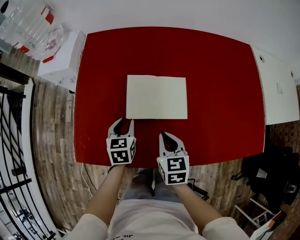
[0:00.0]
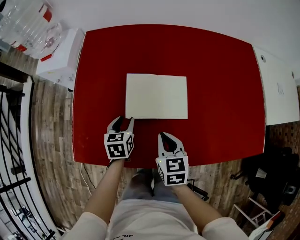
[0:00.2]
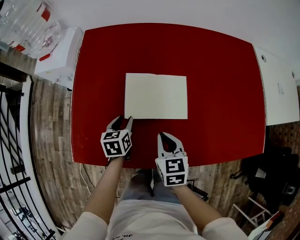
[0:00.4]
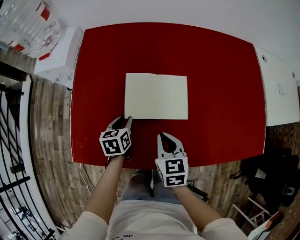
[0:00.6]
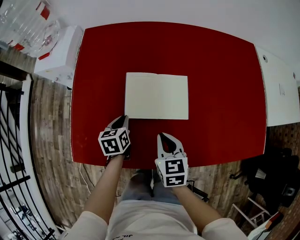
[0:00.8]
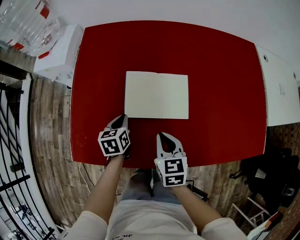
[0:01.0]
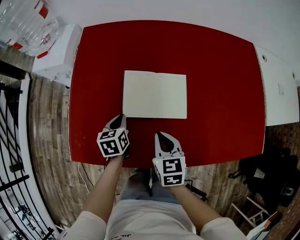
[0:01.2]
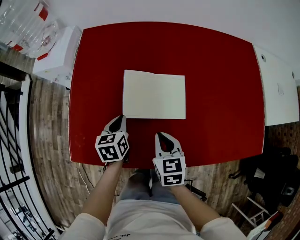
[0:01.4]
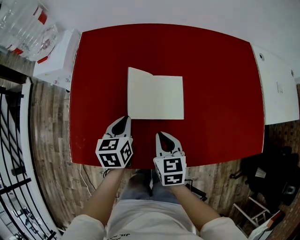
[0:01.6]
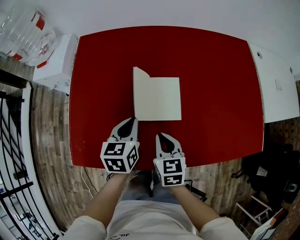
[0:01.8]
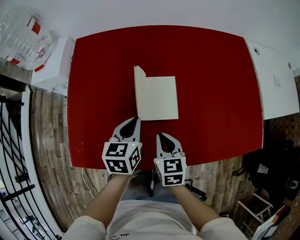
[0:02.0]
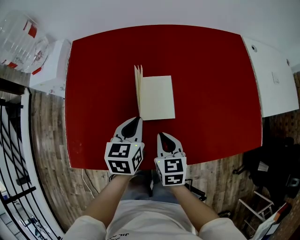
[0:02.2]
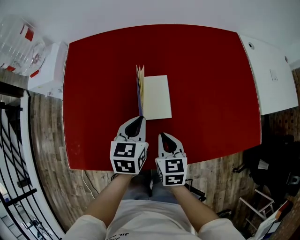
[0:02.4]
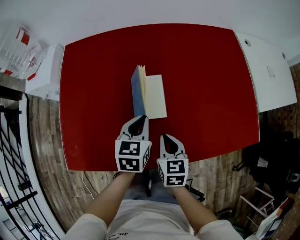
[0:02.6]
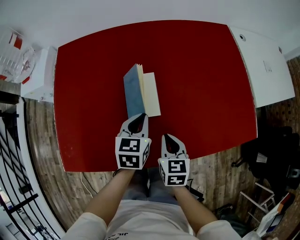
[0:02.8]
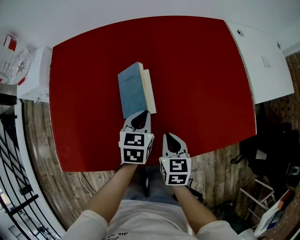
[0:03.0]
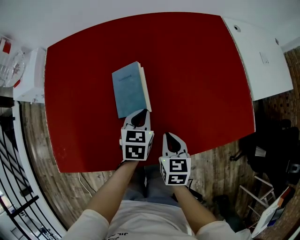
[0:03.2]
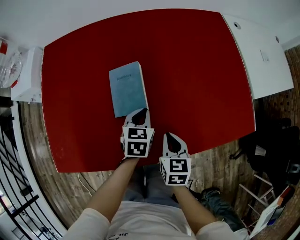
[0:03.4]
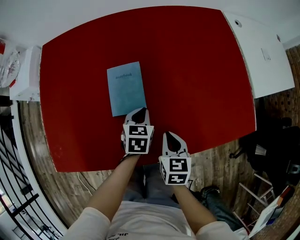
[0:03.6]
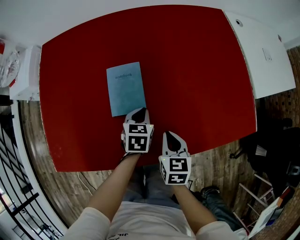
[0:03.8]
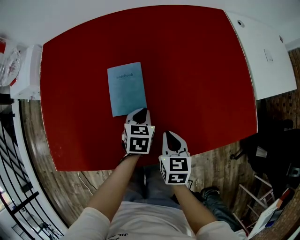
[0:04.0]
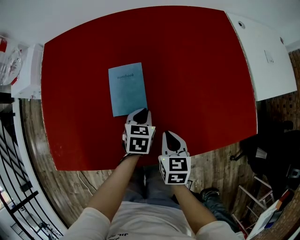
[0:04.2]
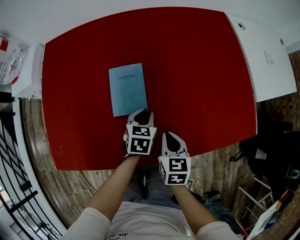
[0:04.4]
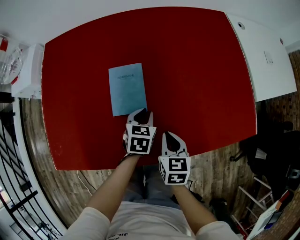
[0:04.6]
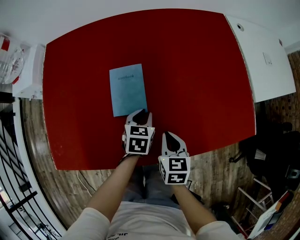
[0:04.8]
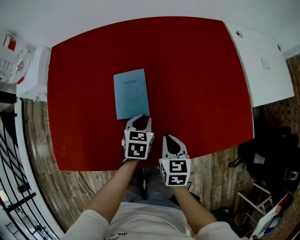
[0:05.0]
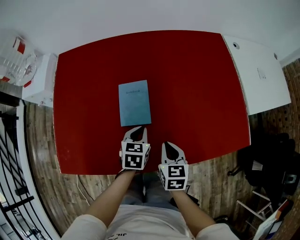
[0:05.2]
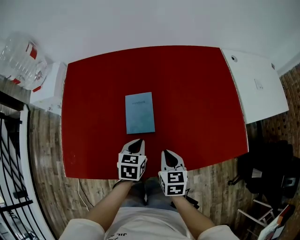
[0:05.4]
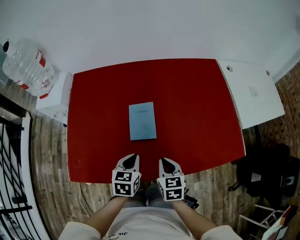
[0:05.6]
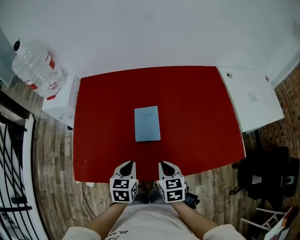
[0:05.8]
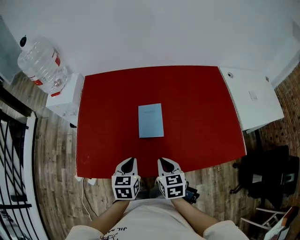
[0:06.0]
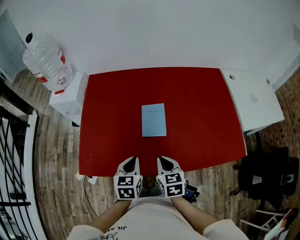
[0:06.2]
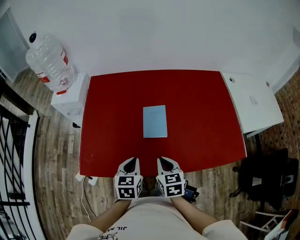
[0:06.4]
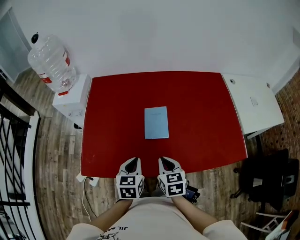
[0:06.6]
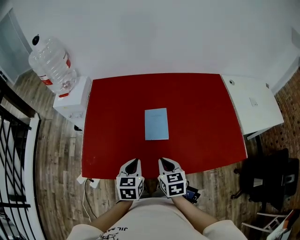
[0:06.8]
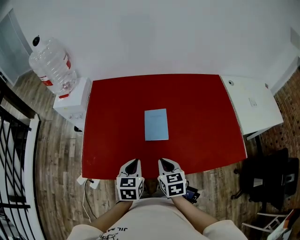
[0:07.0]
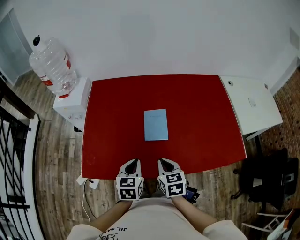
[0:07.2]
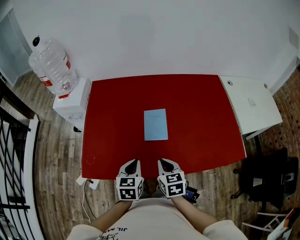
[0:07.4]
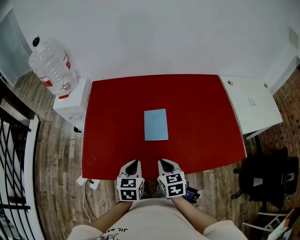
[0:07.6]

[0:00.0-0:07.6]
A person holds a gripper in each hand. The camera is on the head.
0:00.0 to 0:01.6: The left gripper closes its fingers.
0:01.6 to 0:03.0: Both grippers move to the right, roughly 20 cm. The left gripper rotates some 20 degrees.
0:03.0 to 0:04.6: The left gripper shifts roughly 10 cm downward.
0:04.6 to 0:06.0: The left gripper shifts roughly 30 cm upward, backward and to the left. Meanwhile the right gripper goes about 20 cm upward, to the left and backward.
0:06.0 to 0:07.6: The grippers move only a little.

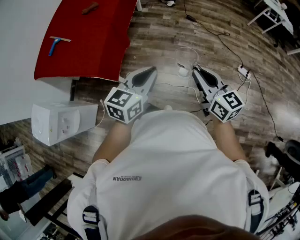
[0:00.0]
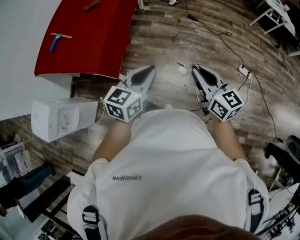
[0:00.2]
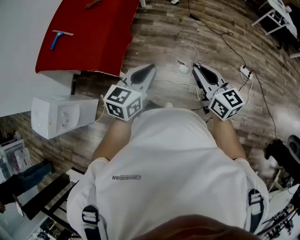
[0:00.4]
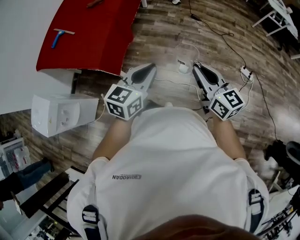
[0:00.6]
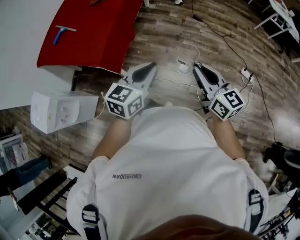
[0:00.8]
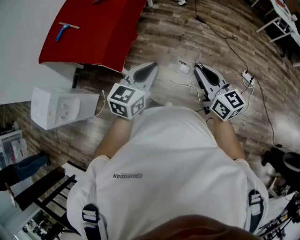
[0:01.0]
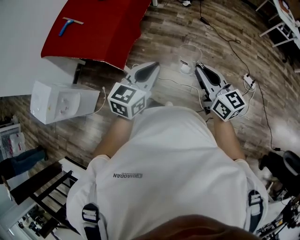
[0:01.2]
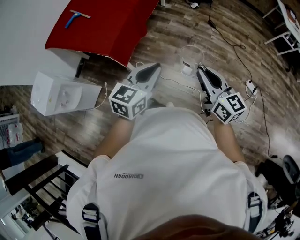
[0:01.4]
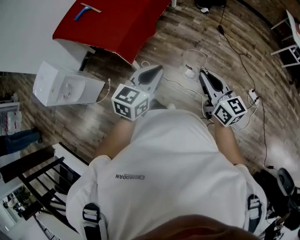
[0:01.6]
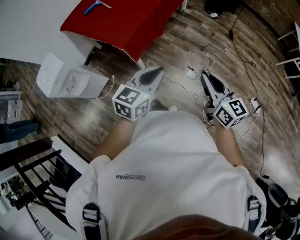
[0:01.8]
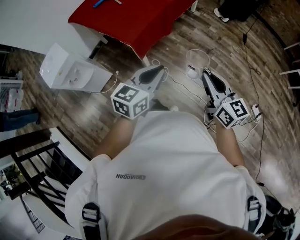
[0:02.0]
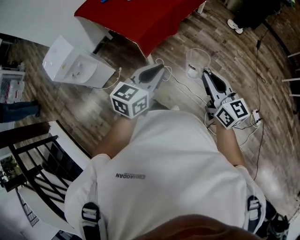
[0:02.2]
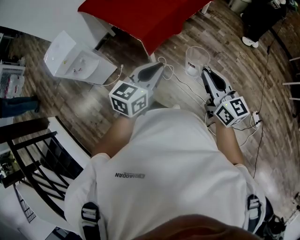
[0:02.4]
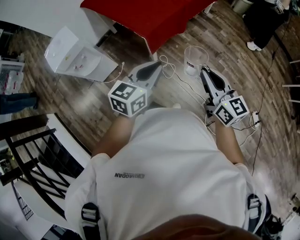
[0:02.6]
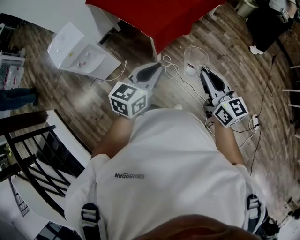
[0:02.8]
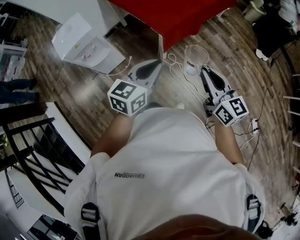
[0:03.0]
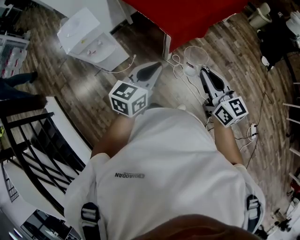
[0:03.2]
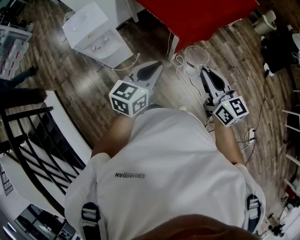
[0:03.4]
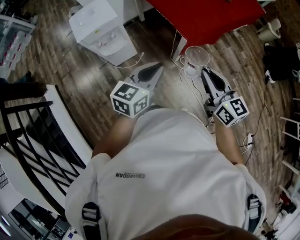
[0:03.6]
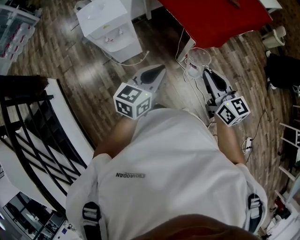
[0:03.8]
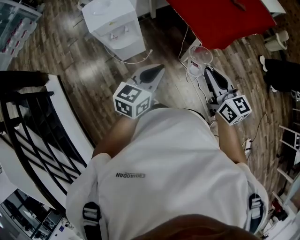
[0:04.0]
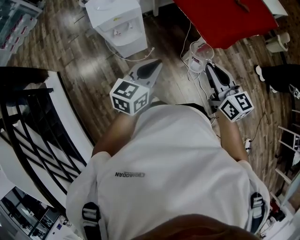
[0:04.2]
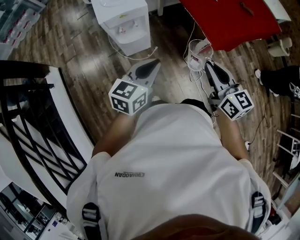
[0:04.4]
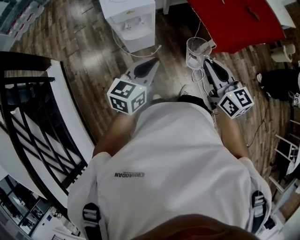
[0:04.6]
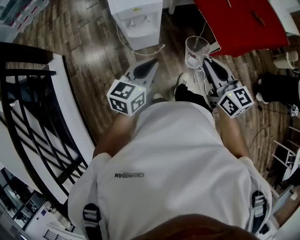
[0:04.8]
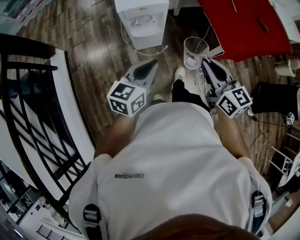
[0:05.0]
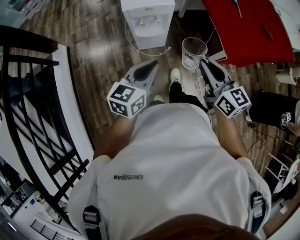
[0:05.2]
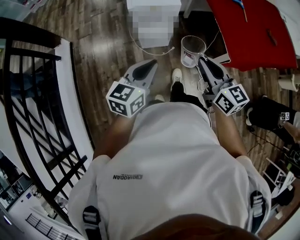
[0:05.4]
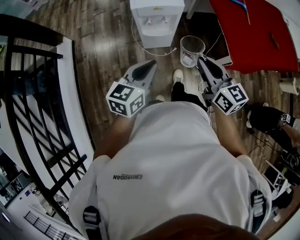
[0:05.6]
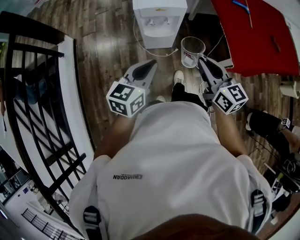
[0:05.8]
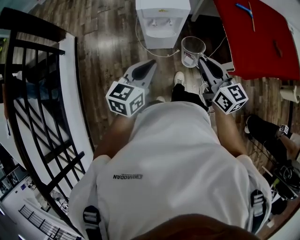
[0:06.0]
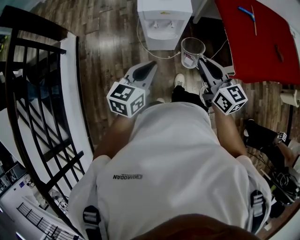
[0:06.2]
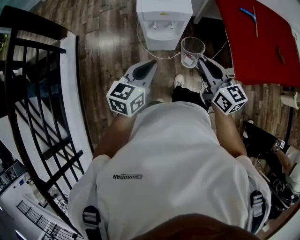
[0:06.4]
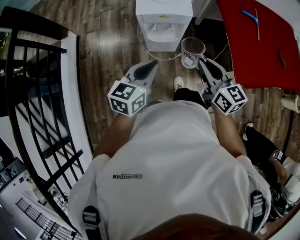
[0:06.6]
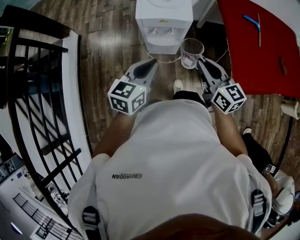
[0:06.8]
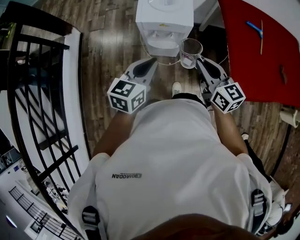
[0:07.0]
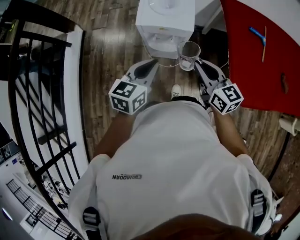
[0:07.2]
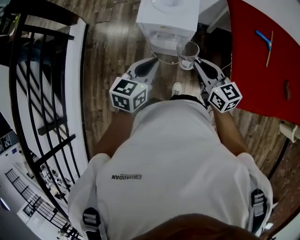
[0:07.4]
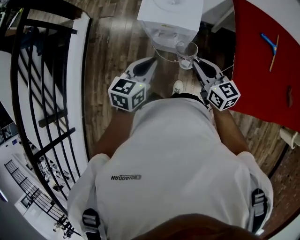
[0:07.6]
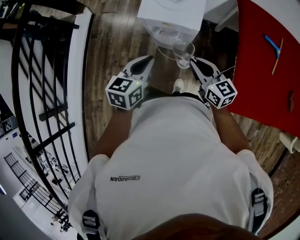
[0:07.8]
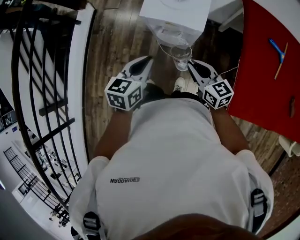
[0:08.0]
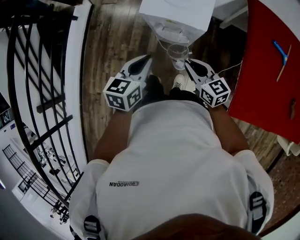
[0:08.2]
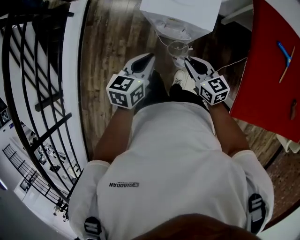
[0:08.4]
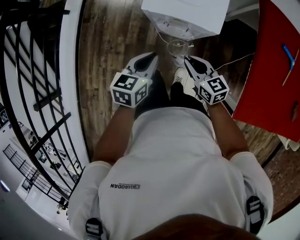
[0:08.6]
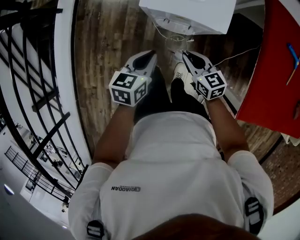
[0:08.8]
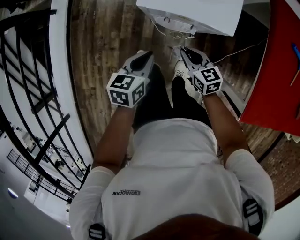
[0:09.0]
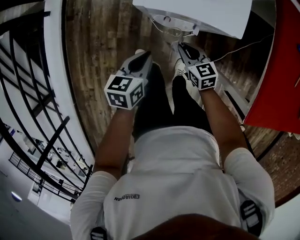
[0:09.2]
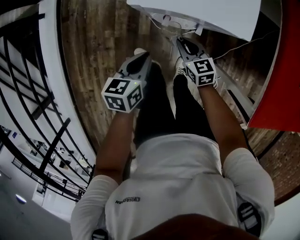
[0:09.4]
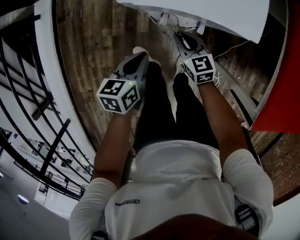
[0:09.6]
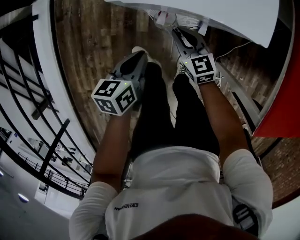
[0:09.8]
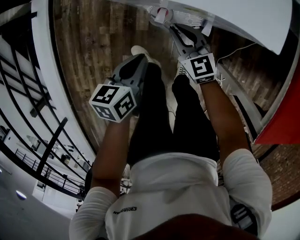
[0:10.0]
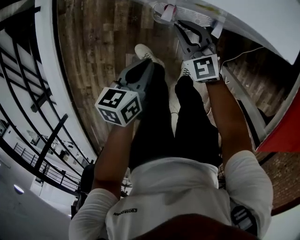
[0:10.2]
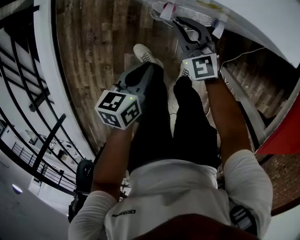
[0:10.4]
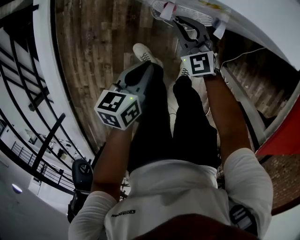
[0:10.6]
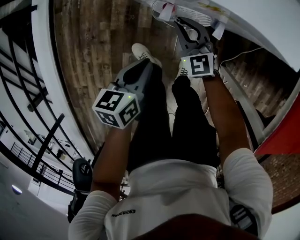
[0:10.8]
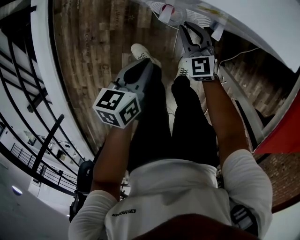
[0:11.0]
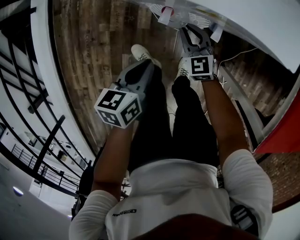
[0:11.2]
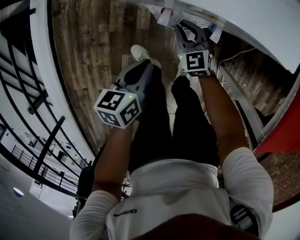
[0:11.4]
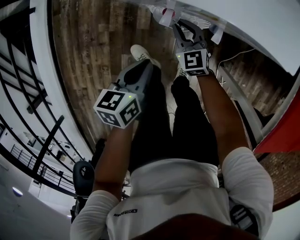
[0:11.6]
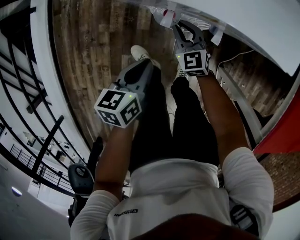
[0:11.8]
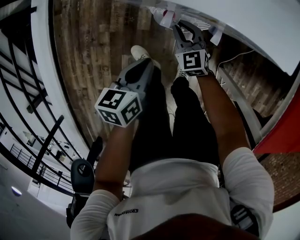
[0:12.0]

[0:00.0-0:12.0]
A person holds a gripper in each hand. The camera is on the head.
0:00.0 to 0:01.6: The left gripper moves about 5 cm.
0:01.6 to 0:03.0: The two grippers go approximately 20 cm to the left. The left gripper turns by about 20 degrees, while the right gripper changes its angle by some 20 degrees.
0:03.0 to 0:04.4: Both grippers move to the left, approximately 25 cm.
0:04.4 to 0:06.0: The right gripper goes some 15 cm to the left and forward. The left gripper is displaced to the left by roughly 10 cm, and rotates roughly 20 degrees.
0:06.0 to 0:07.6: The left gripper heads forward and to the right, covering approximately 20 cm; the right gripper moves forward and downward, some 20 cm, and swivels about 20 degrees.
0:07.6 to 0:09.0: The two grippers go some 20 cm downward.
0:09.0 to 0:10.4: The left gripper shifts approximately 15 cm downward; the right gripper heads downward, forward and to the left, covering approximately 15 cm, and rotates some 40 degrees.
0:10.4 to 0:12.0: The right gripper is displaced downward by some 5 cm.

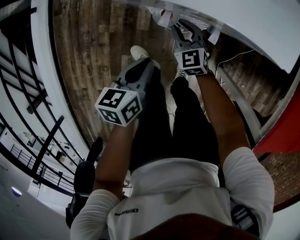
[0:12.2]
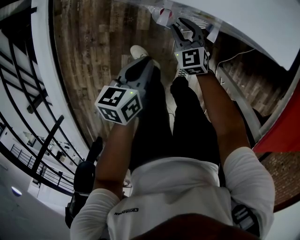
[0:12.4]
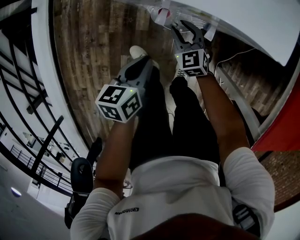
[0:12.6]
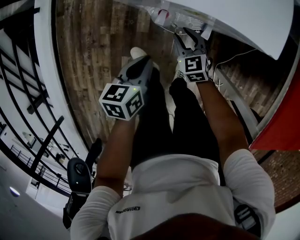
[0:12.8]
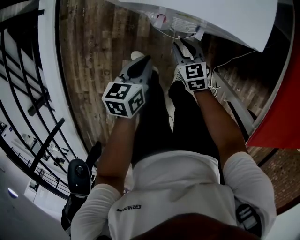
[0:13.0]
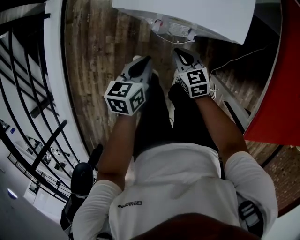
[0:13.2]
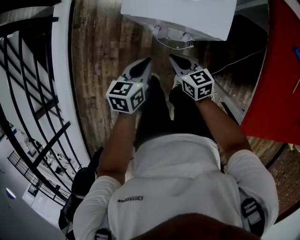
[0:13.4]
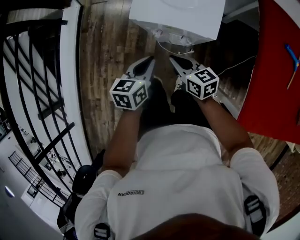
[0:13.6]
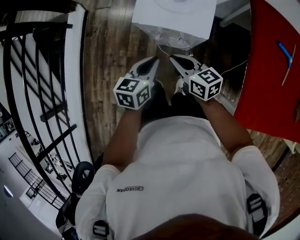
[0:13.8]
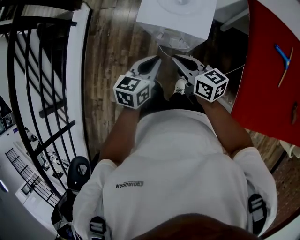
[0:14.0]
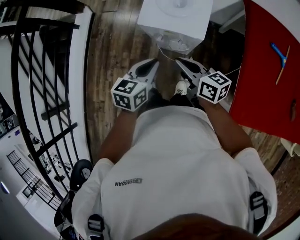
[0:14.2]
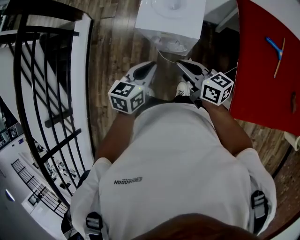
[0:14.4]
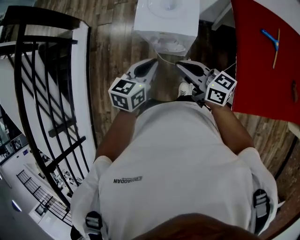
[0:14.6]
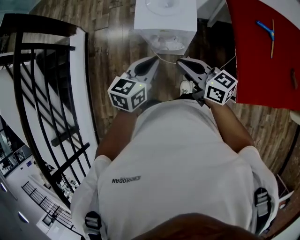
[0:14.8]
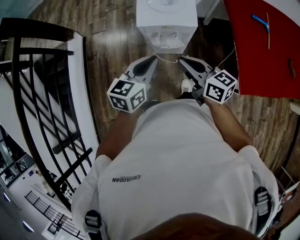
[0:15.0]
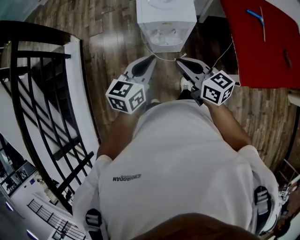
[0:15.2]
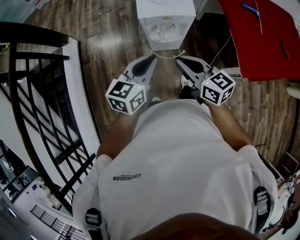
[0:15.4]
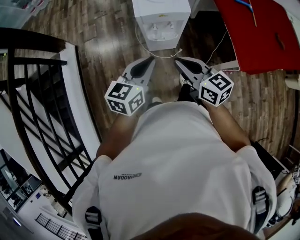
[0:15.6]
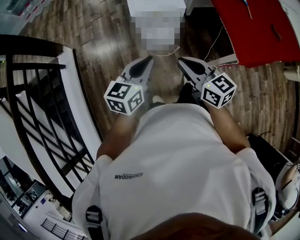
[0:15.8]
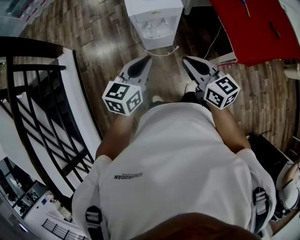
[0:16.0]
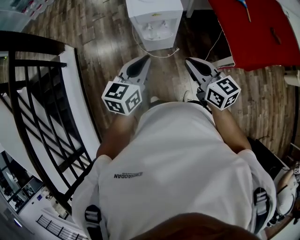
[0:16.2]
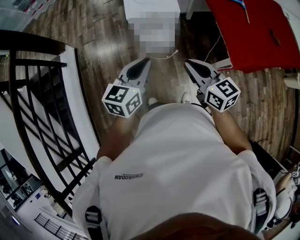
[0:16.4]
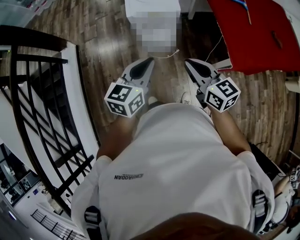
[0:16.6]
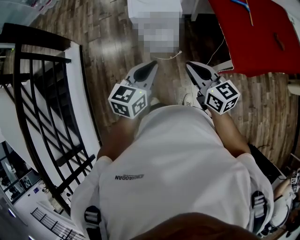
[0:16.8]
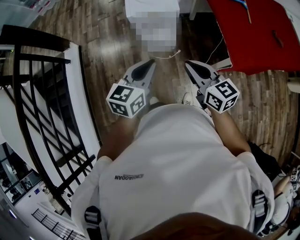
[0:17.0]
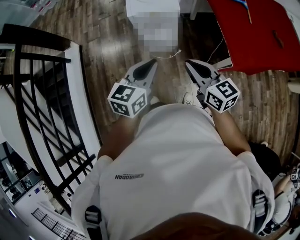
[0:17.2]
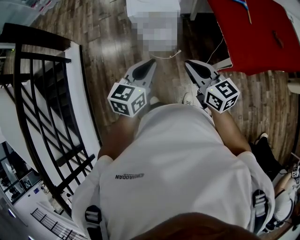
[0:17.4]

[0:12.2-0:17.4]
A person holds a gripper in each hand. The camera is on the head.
0:12.2 to 0:14.0: Both grippers move upward, about 35 cm. The right gripper rotates around the line of its fingers by approximately 40 degrees, clockwise from behind; the left gripper turns by some 20 degrees.
0:14.0 to 0:15.6: The grippers both shift backward, upward and to the left by roughly 20 cm. The left gripper swivels some 30 degrees. Meanwhile the right gripper rotates approximately 30 degrees.
0:15.6 to 0:17.4: Both grippers move to the right, about 10 cm.
